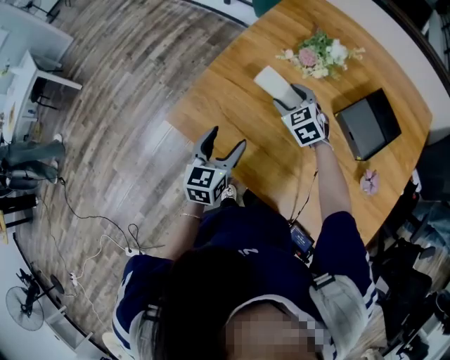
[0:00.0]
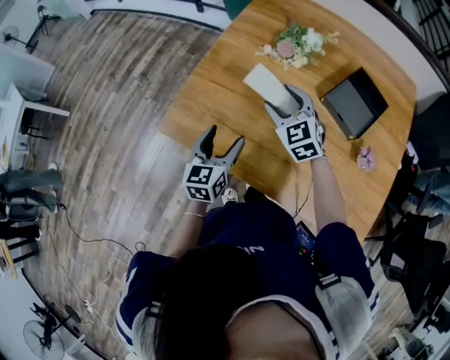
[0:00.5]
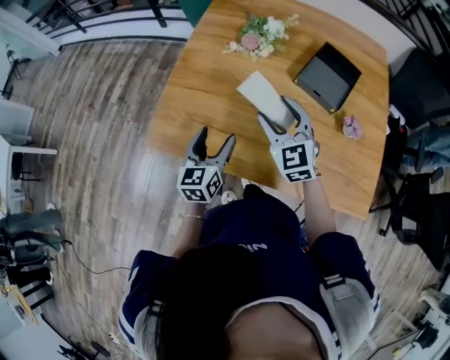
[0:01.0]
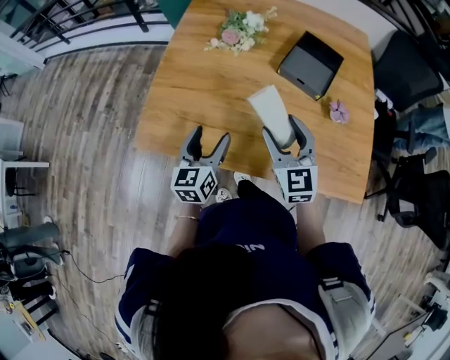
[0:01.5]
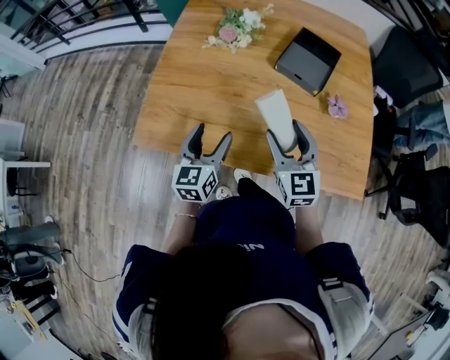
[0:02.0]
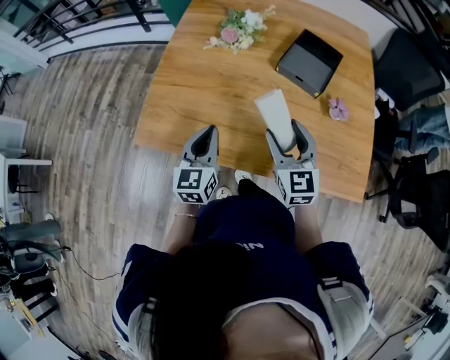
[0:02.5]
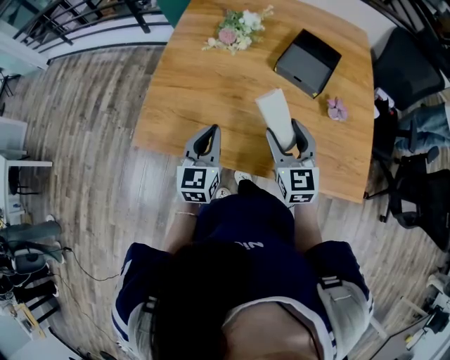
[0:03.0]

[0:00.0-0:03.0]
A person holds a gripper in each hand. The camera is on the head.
0:00.0 to 0:01.5: The right gripper travels backward, upward and to the right by approximately 30 cm, and turns by roughly 40 degrees. The left gripper goes approximately 5 cm to the right.
0:01.5 to 0:03.0: The left gripper closes.

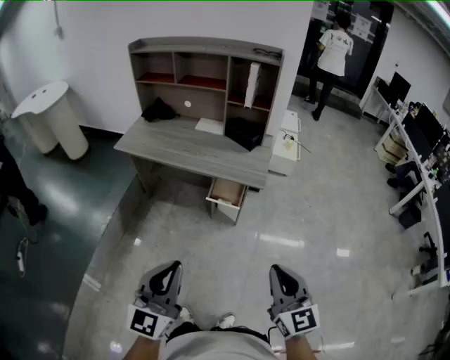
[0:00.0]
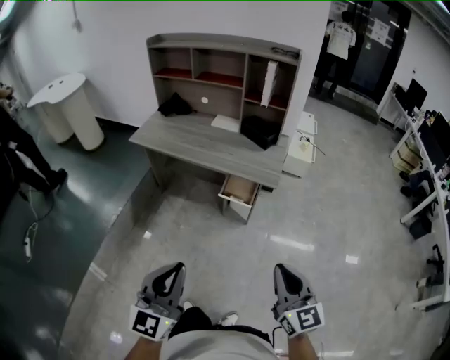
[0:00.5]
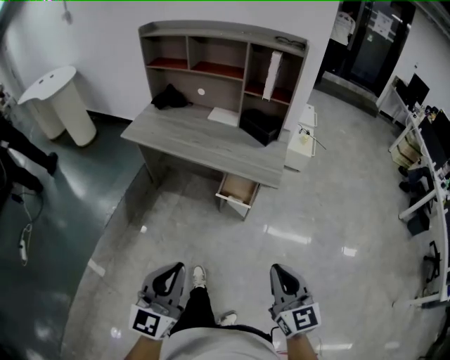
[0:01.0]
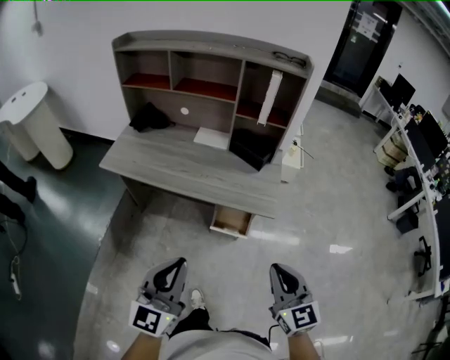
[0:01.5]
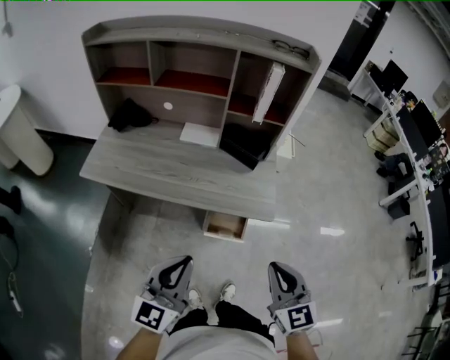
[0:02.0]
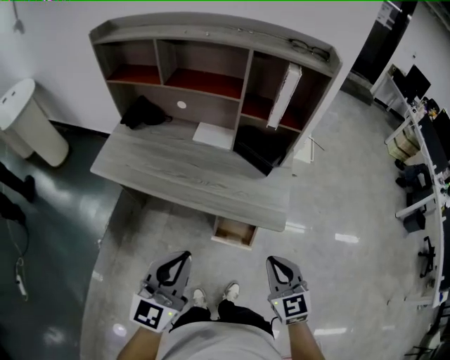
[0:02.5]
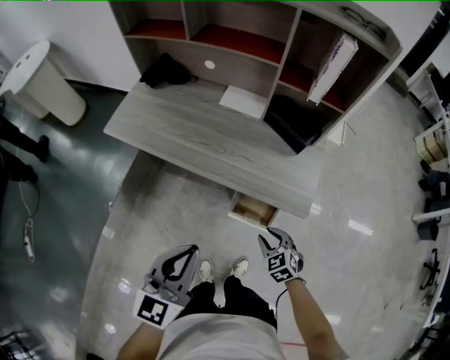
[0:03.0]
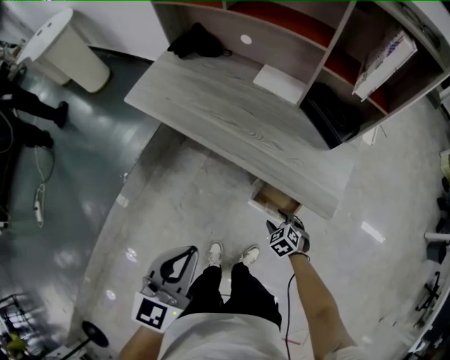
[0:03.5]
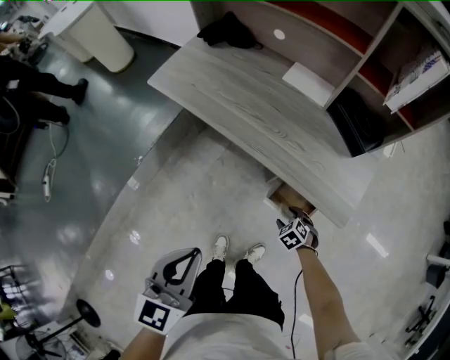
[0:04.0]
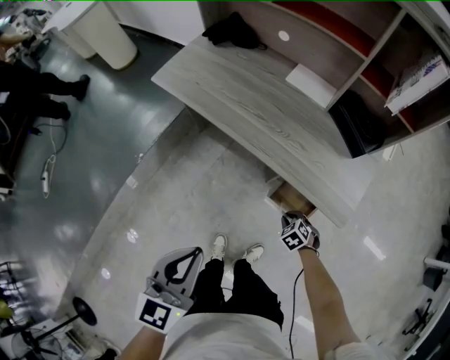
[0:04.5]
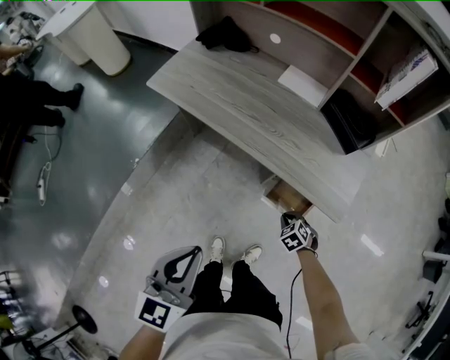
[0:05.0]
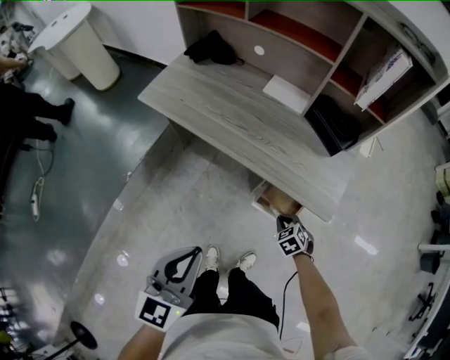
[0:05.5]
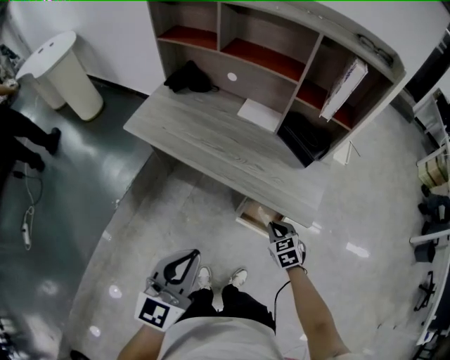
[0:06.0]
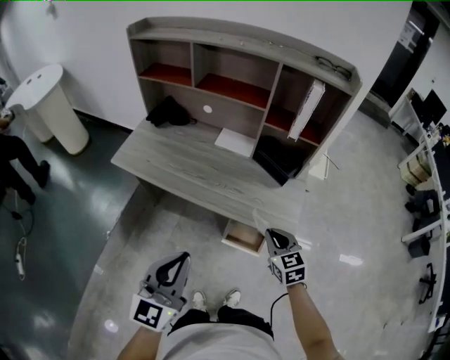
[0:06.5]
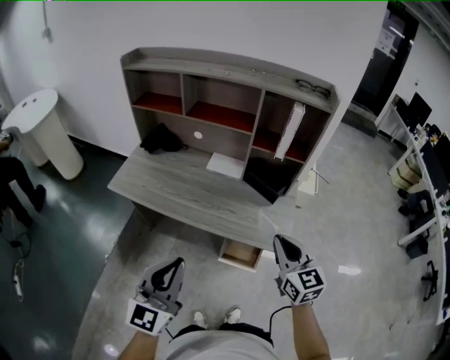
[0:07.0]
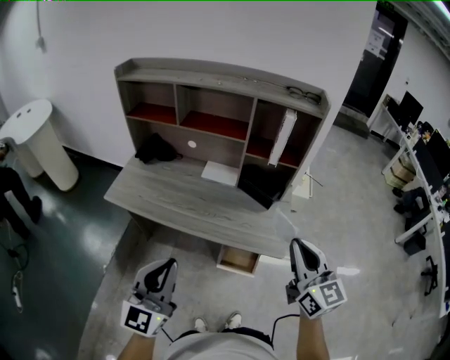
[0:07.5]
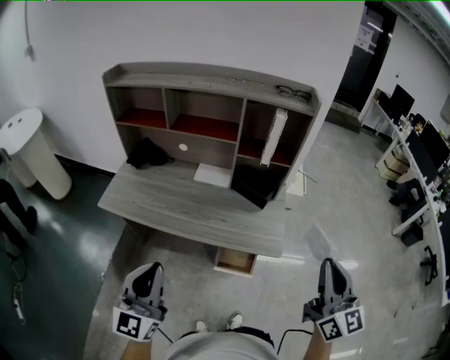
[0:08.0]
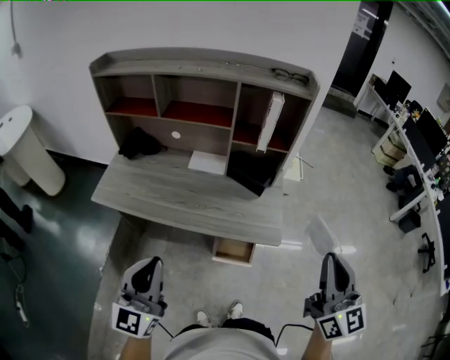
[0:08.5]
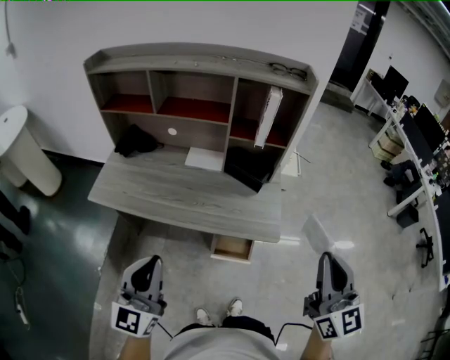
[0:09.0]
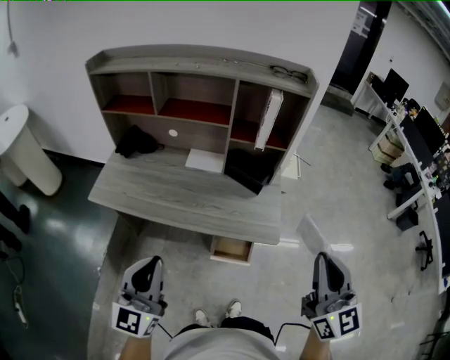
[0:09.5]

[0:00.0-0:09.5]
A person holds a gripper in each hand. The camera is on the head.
0:00.0 to 0:02.0: Both grippers travel together forward, about 30 cm.
0:02.0 to 0:04.0: The left gripper travels downward by some 10 cm, and swivels about 30 degrees, while the right gripper is displaced downward by some 50 cm, points its fingers roughly 50 degrees further downward, and opens up.
0:04.0 to 0:05.5: The right gripper shifts roughly 10 cm upward, and closes its fingers.
0:05.5 to 0:07.5: The left gripper heads upward and forward, covering some 15 cm, and rotates approximately 20 degrees. Meanwhile the right gripper travels upward by approximately 50 cm, and points its fingers about 60 degrees further upward.
0:07.5 to 0:09.5: The right gripper is displaced backward by about 5 cm.

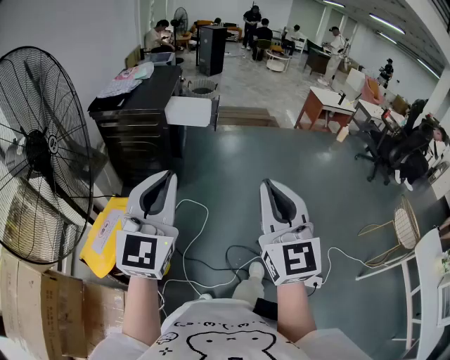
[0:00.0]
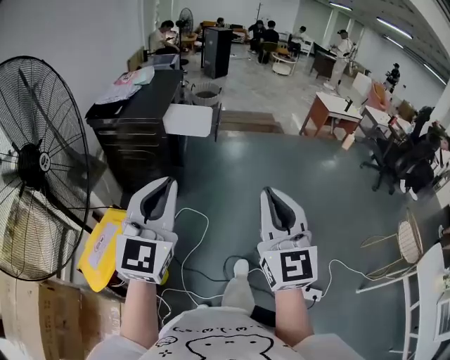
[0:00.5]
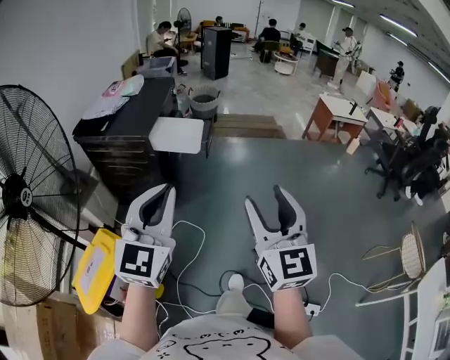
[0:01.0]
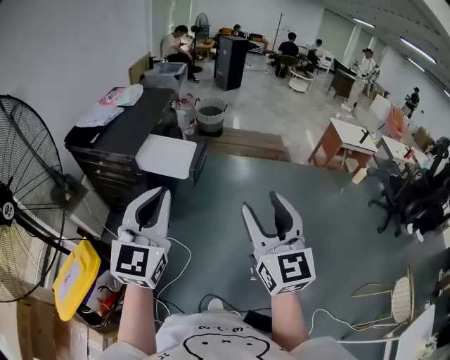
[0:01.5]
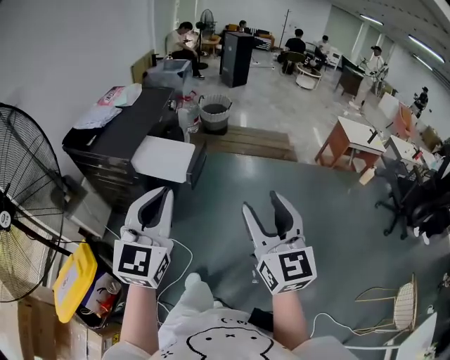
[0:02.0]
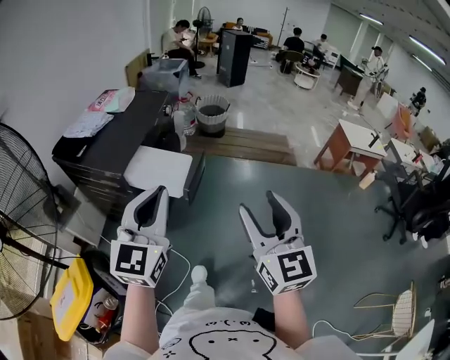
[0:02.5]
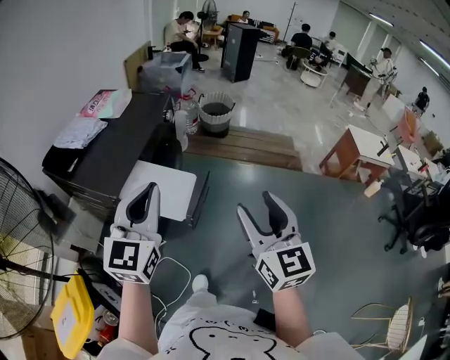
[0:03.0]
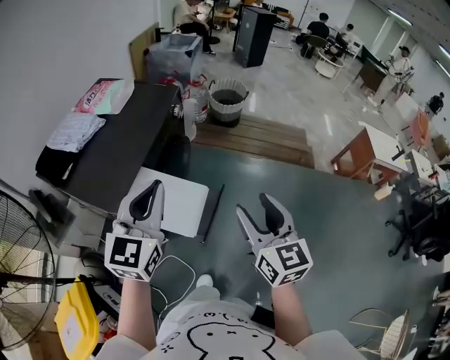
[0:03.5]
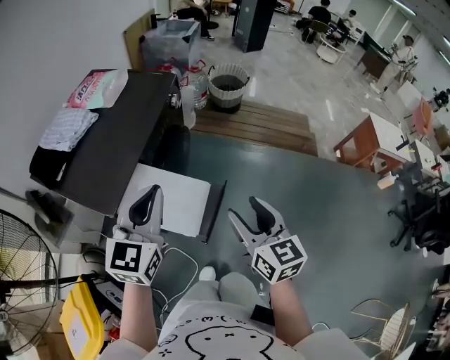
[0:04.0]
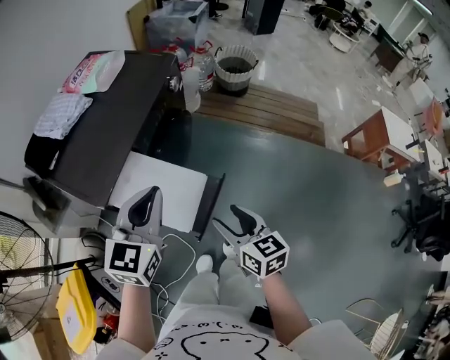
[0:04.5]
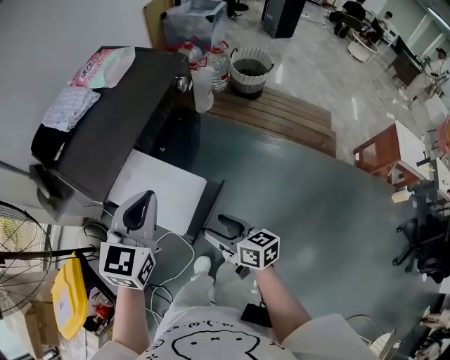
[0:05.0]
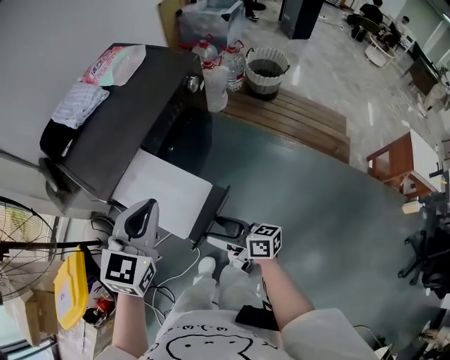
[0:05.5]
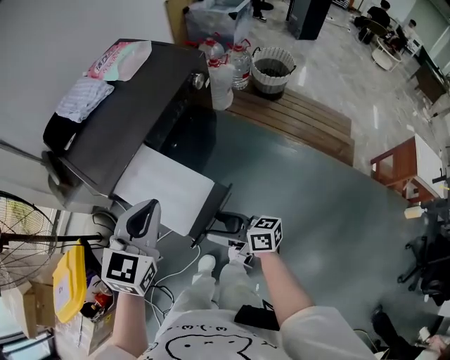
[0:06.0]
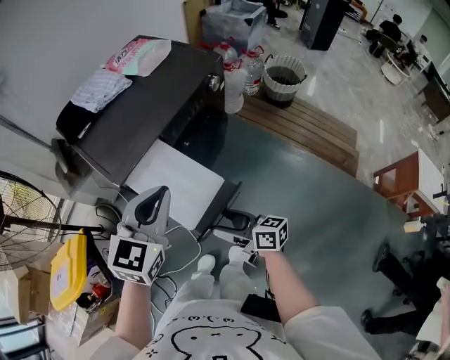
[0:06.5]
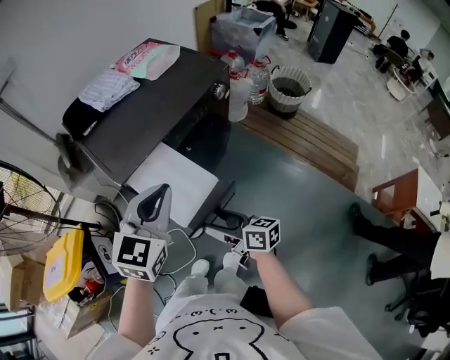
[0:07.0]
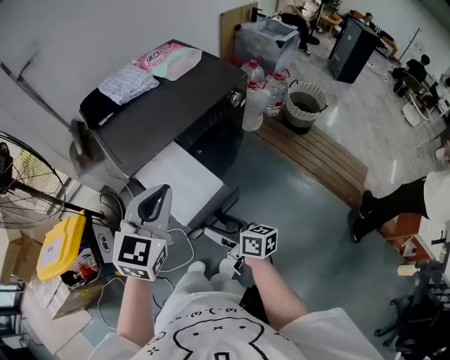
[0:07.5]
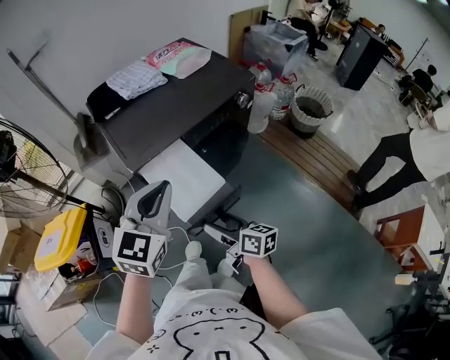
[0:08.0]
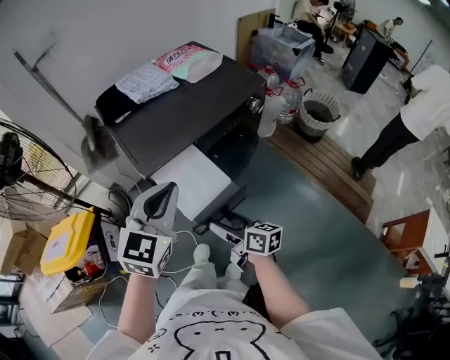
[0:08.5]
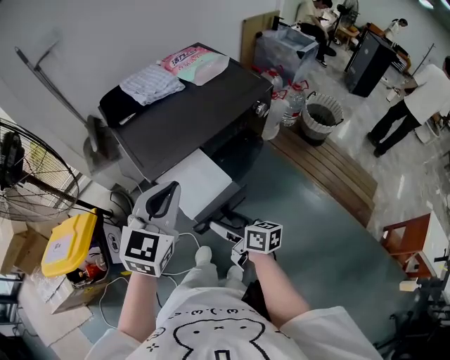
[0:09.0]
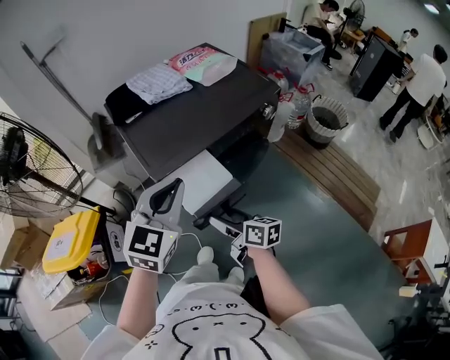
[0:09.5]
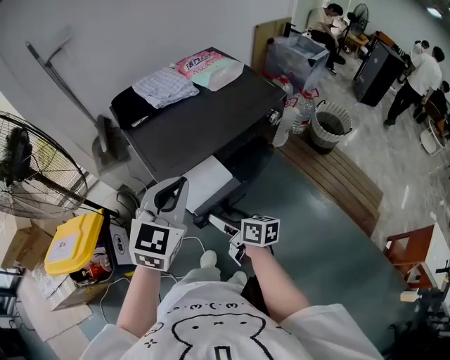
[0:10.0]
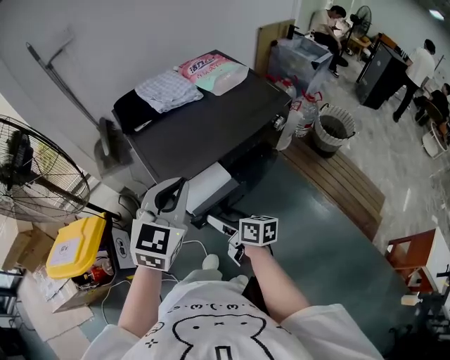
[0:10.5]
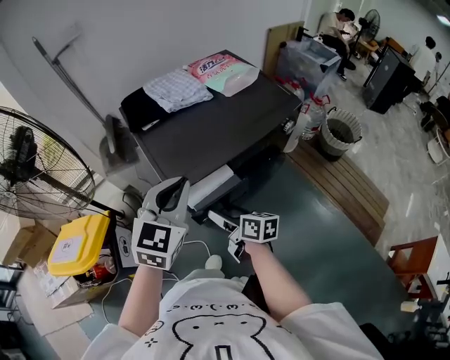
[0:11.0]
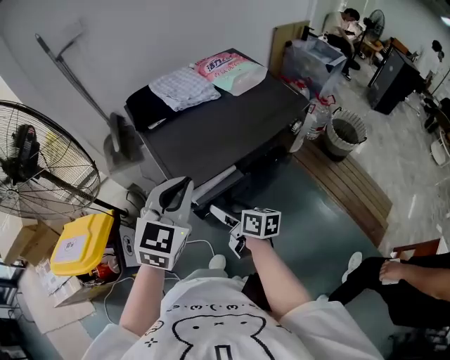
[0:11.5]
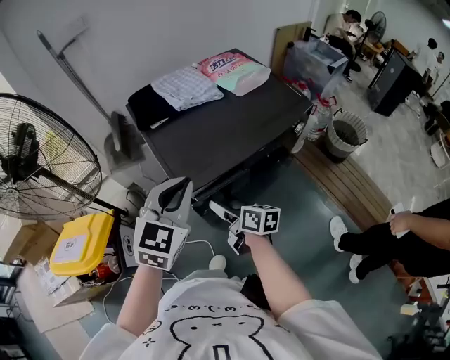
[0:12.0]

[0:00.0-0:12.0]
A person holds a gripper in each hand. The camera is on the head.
0:00.0 to 0:02.0: Both grippers are carried forward and to the right, approximately 40 cm. The right gripper opens up.
0:02.0 to 0:04.0: The left gripper shifts roughly 35 cm forward, while the right gripper is displaced forward and downward by roughly 40 cm, and turns by some 30 degrees.
0:04.0 to 0:06.0: The left gripper goes approximately 5 cm downward. The right gripper moves downward, roughly 15 cm, changes its angle by roughly 60 degrees, and opens up.
0:06.0 to 0:08.0: The left gripper heads upward, covering roughly 5 cm.
0:08.0 to 0:10.0: The left gripper travels forward by roughly 5 cm; the right gripper goes approximately 10 cm forward and to the left.
0:10.0 to 0:12.0: The left gripper heads forward, covering roughly 5 cm. The right gripper shifts about 10 cm forward.

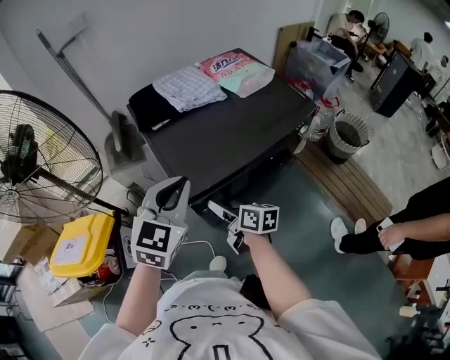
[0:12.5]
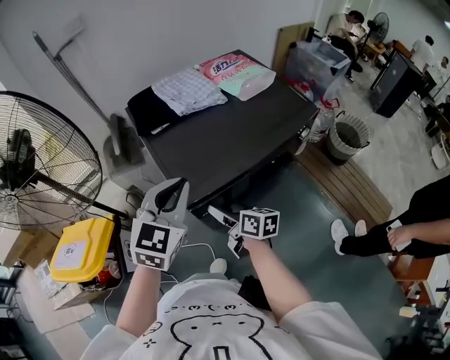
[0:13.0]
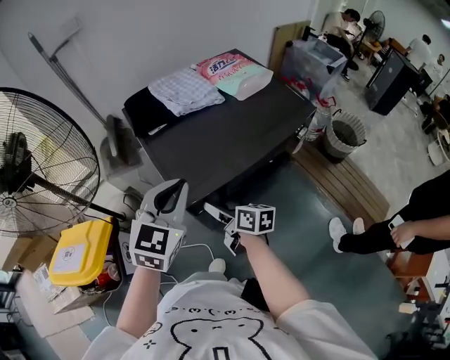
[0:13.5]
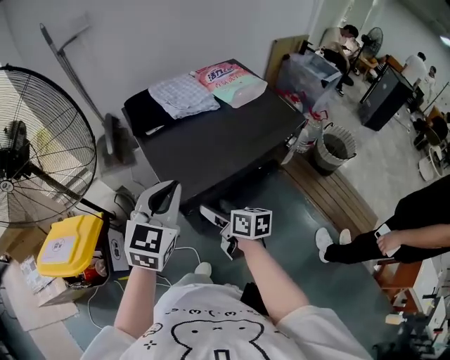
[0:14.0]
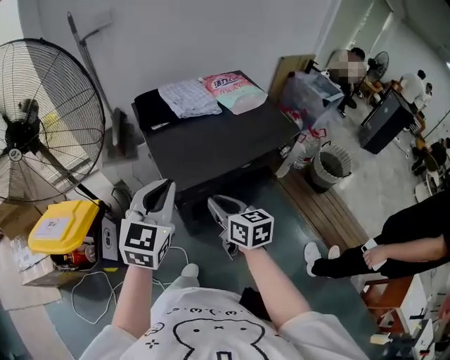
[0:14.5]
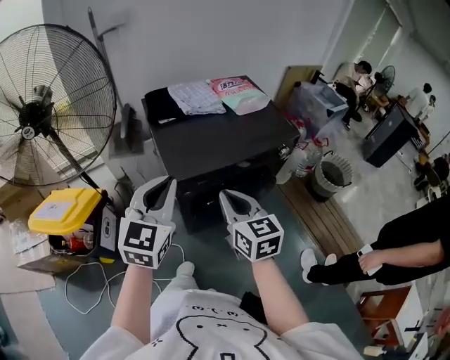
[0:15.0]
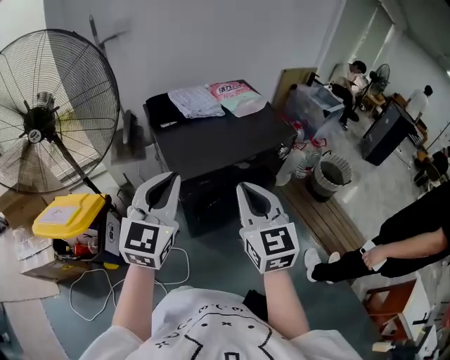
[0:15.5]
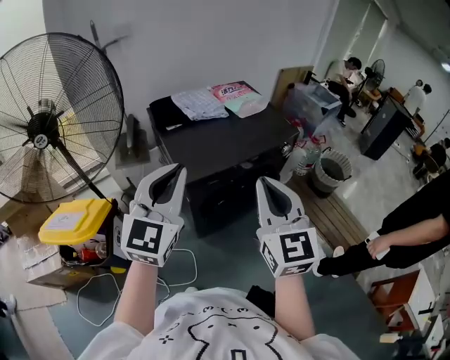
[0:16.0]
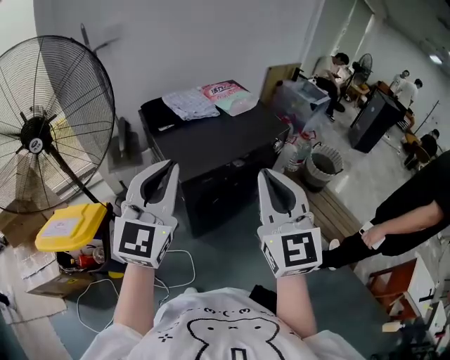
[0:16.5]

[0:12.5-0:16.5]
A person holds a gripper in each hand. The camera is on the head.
0:12.5 to 0:14.5: The right gripper heads upward, covering about 10 cm, rotates approximately 30 degrees, and closes, while the left gripper moves backward, roughly 5 cm.
0:14.5 to 0:16.5: The left gripper travels upward and backward by roughly 15 cm, and rotates about 20 degrees. The right gripper heads upward and backward, covering some 30 cm, and rotates about 50 degrees.
